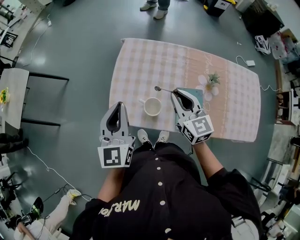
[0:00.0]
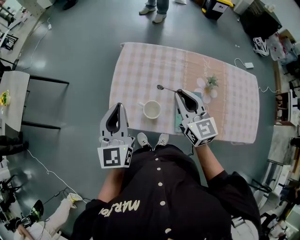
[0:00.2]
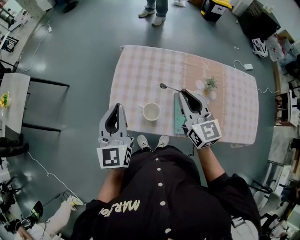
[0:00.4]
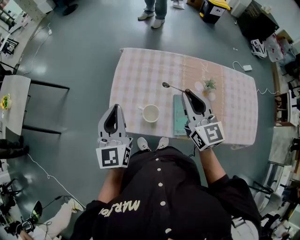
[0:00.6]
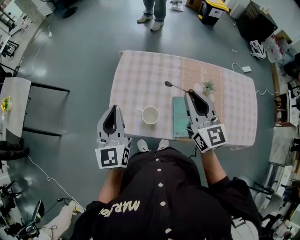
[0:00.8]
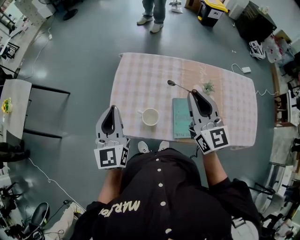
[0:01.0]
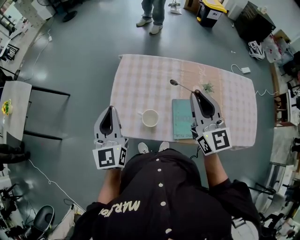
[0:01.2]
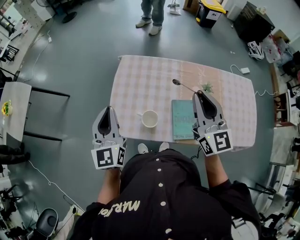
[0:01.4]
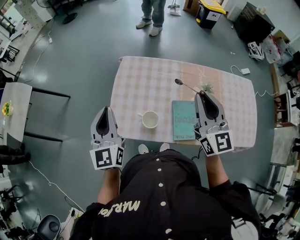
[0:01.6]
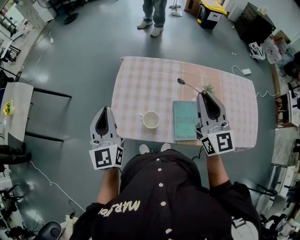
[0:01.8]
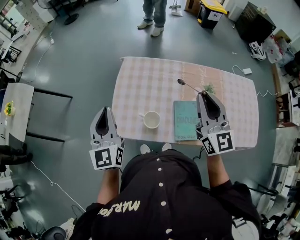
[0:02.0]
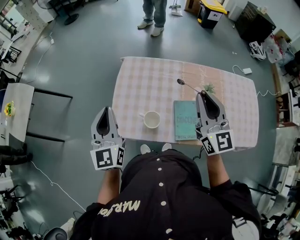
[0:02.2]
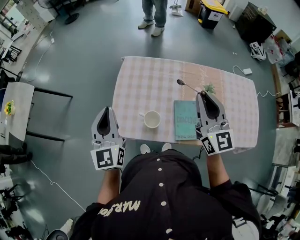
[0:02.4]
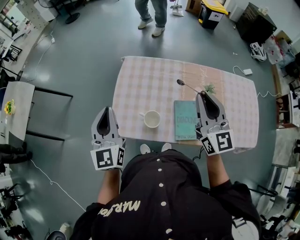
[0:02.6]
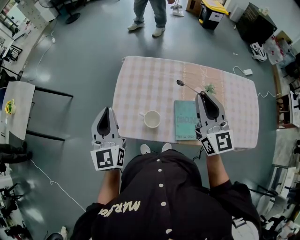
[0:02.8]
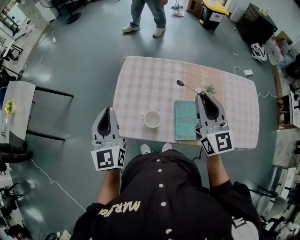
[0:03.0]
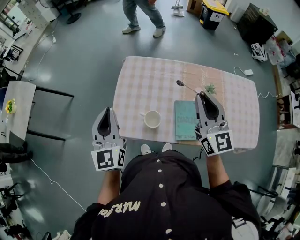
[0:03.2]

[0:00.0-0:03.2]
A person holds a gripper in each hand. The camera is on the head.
0:00.0 to 0:01.6: The left gripper ends up some 5 cm from where it was. The right gripper moves upward and to the right, some 15 cm, and changes its angle by about 20 degrees.
0:01.6 to 0:03.2: The two grippers keep their place.

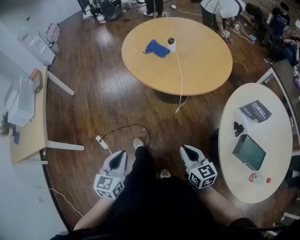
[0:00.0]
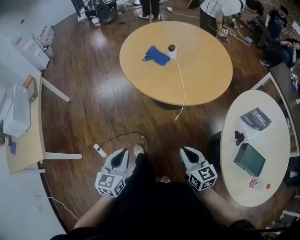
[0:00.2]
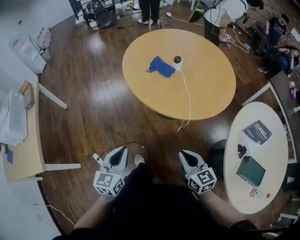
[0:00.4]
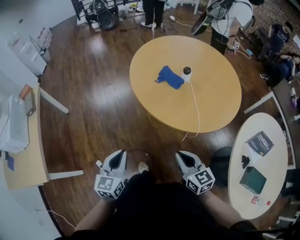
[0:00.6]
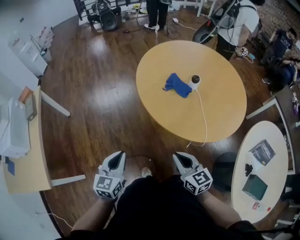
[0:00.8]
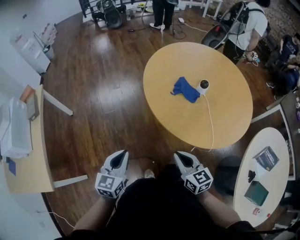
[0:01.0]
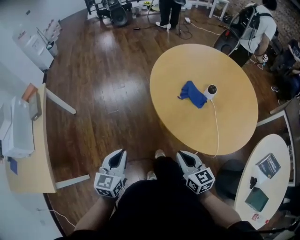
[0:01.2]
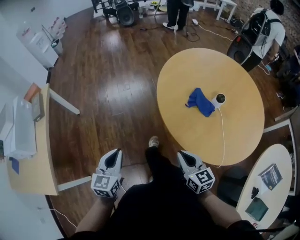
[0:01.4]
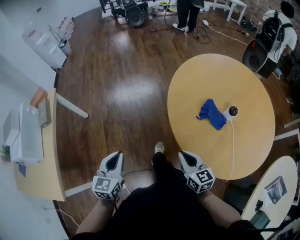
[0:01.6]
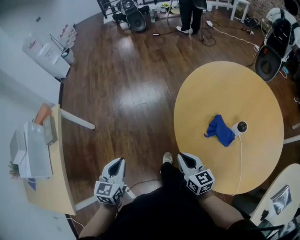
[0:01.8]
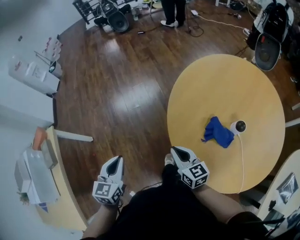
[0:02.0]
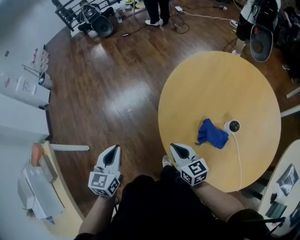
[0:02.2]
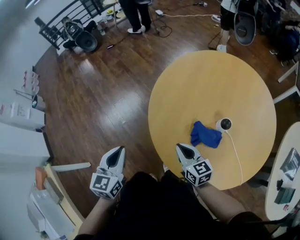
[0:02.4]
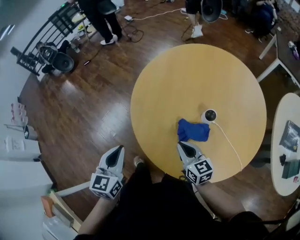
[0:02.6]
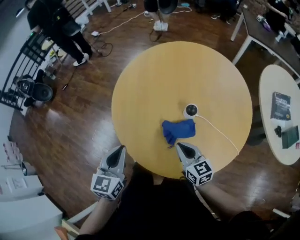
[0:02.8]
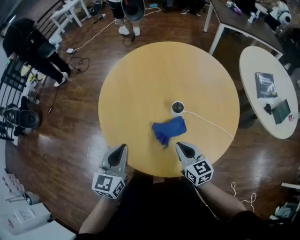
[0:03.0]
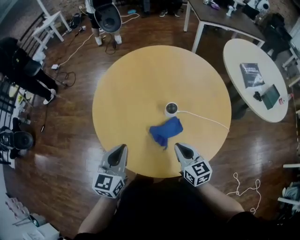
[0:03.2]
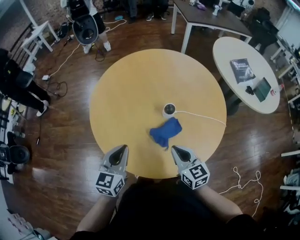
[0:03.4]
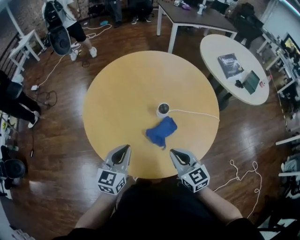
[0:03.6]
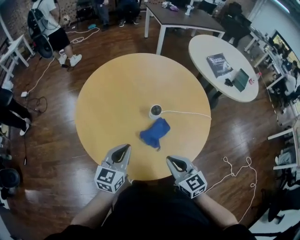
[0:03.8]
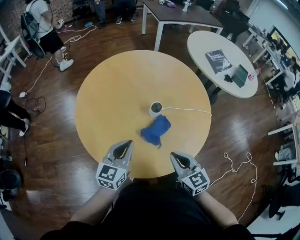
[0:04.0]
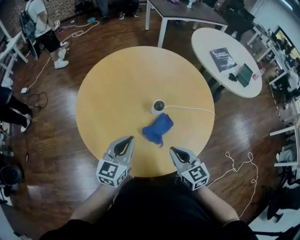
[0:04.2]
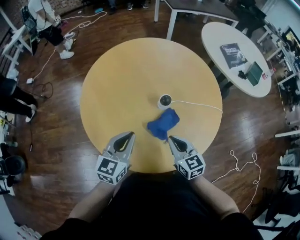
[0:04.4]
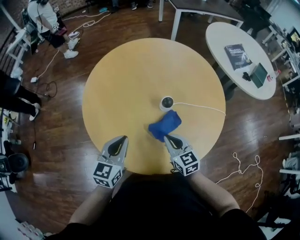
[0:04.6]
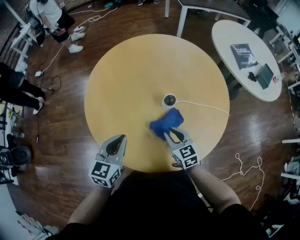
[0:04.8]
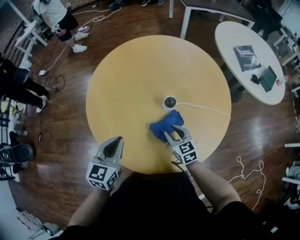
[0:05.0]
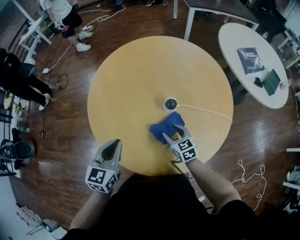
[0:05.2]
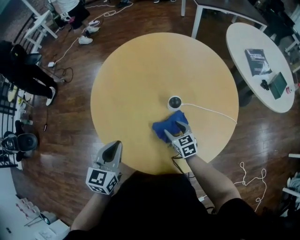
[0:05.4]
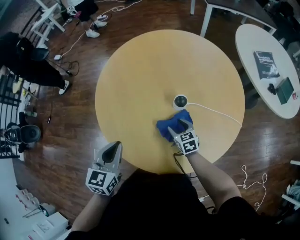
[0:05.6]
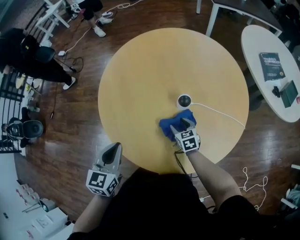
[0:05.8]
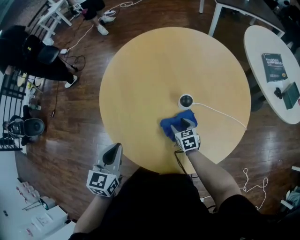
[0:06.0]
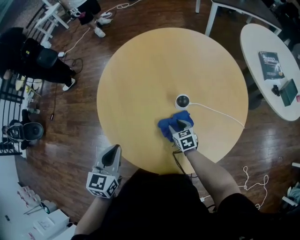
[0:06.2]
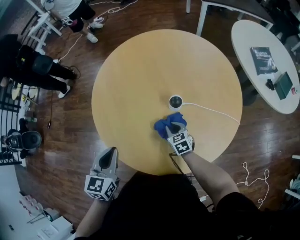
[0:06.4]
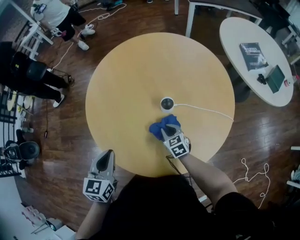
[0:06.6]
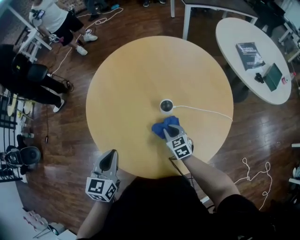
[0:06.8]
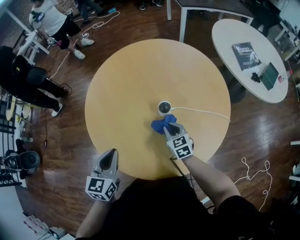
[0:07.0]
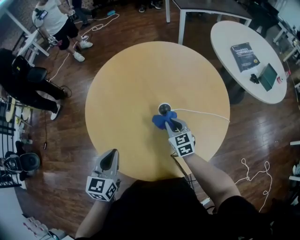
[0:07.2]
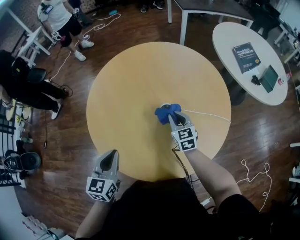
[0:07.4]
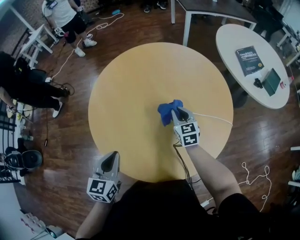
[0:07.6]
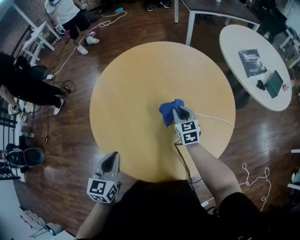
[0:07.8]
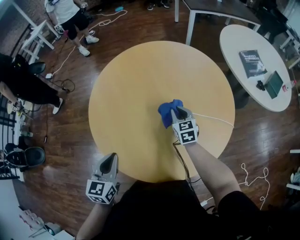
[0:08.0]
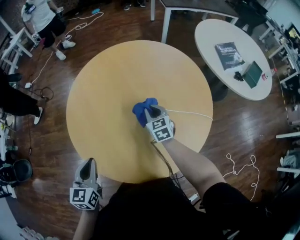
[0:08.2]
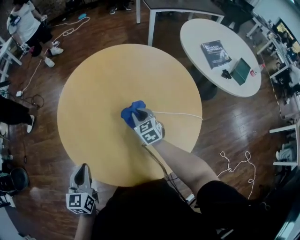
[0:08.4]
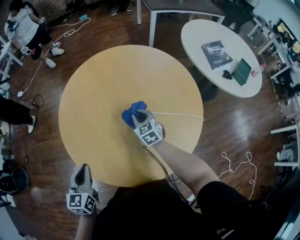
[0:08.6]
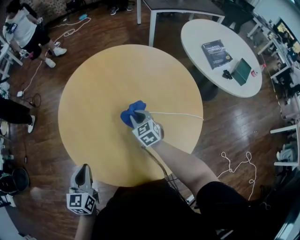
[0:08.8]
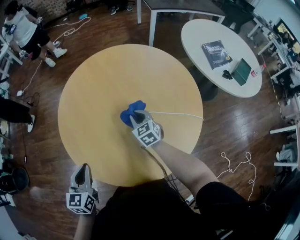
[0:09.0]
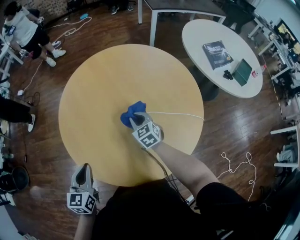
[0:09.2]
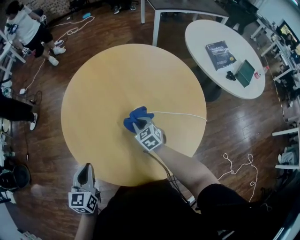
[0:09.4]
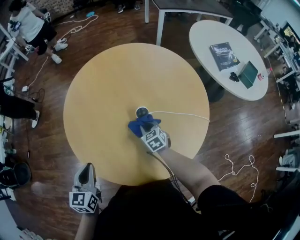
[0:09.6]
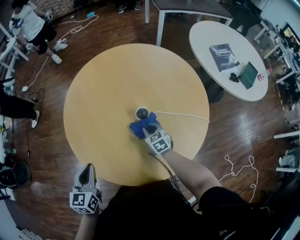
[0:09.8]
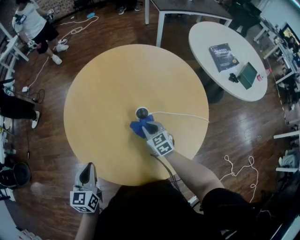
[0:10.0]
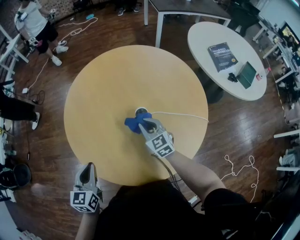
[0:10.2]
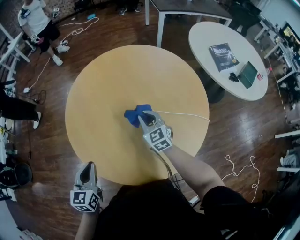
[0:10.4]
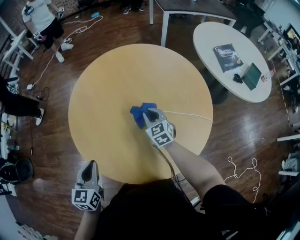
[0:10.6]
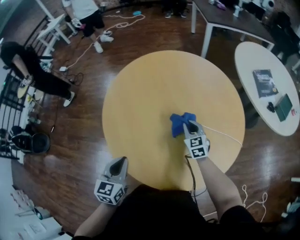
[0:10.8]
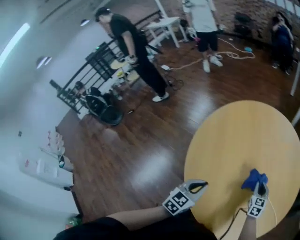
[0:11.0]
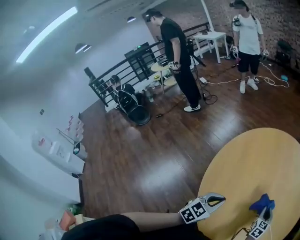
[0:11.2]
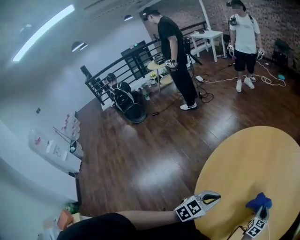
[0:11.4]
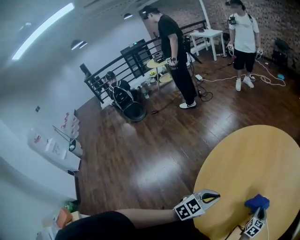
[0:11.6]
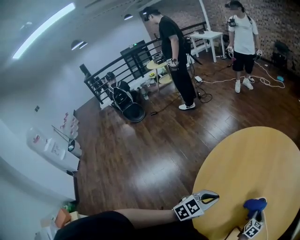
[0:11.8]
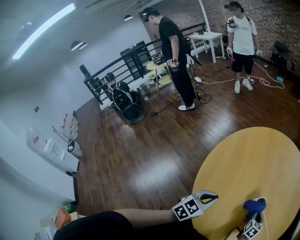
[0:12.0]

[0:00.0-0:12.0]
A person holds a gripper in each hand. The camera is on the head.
0:00.0 to 0:01.6: The pair of grippers is taken forward and to the left, some 50 cm.
0:01.6 to 0:03.0: The right gripper changes place by some 20 cm, and turns by approximately 60 degrees; the left gripper ends up roughly 40 cm from where it was, and turns by roughly 70 degrees.
0:03.0 to 0:04.4: The left gripper shifts by some 10 cm, and swivels approximately 30 degrees. Meanwhile the right gripper rotates approximately 20 degrees.
0:04.4 to 0:06.0: The right gripper shifts about 20 cm downward and forward, rotates about 30 degrees, and opens its fingers. The left gripper shifts approximately 10 cm to the left and backward, and rotates some 30 degrees.
0:06.0 to 0:07.6: The right gripper travels upward, forward and to the right by approximately 20 cm, rotates about 30 degrees, and closes.
0:07.6 to 0:09.0: The right gripper heads to the left, covering about 5 cm.
0:10.4 to 0:12.0: The left gripper is displaced to the right by approximately 10 cm. Meanwhile the right gripper goes roughly 15 cm to the right and downward, and changes its angle by approximately 30 degrees.

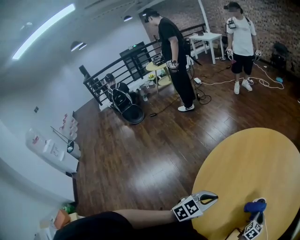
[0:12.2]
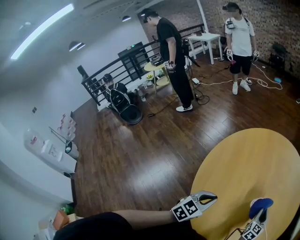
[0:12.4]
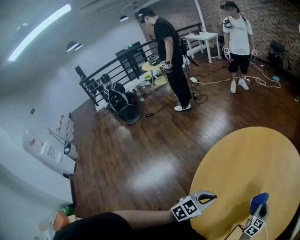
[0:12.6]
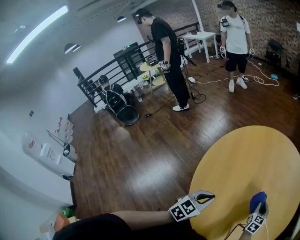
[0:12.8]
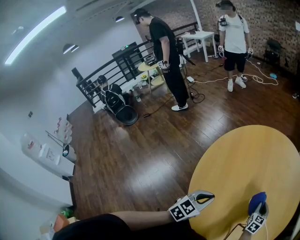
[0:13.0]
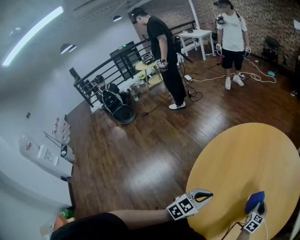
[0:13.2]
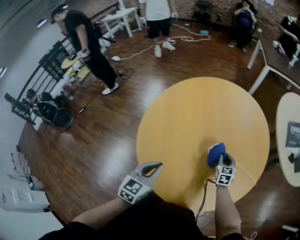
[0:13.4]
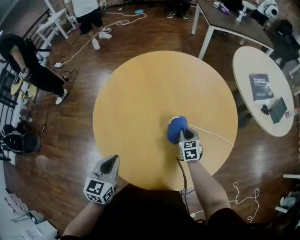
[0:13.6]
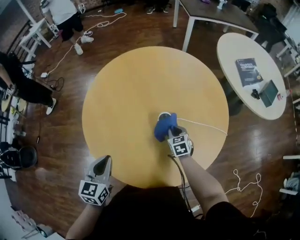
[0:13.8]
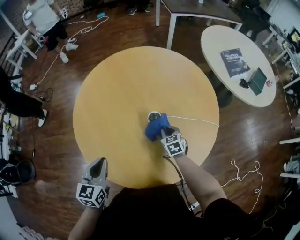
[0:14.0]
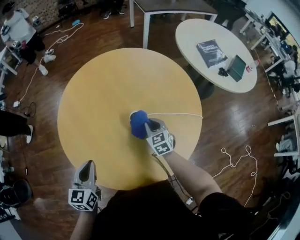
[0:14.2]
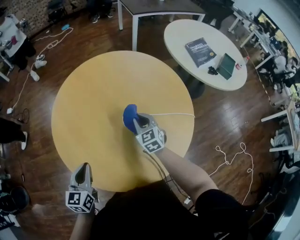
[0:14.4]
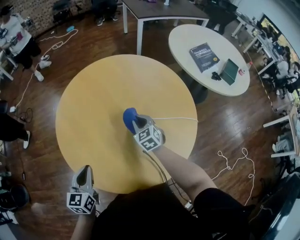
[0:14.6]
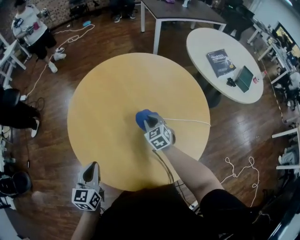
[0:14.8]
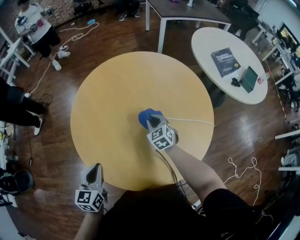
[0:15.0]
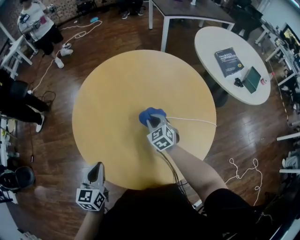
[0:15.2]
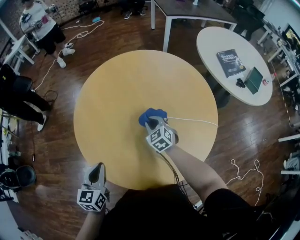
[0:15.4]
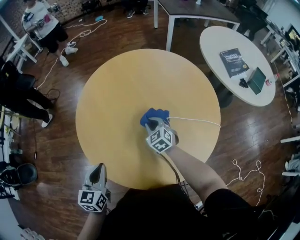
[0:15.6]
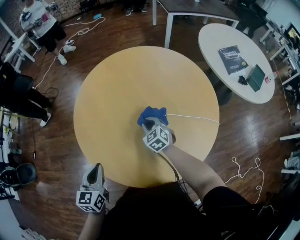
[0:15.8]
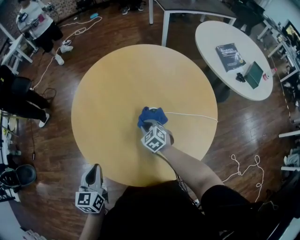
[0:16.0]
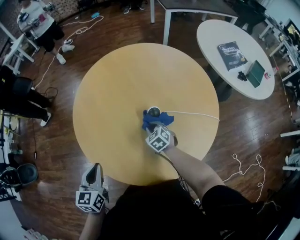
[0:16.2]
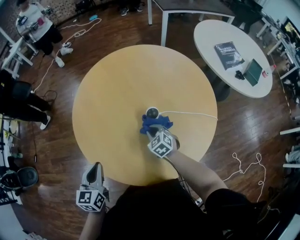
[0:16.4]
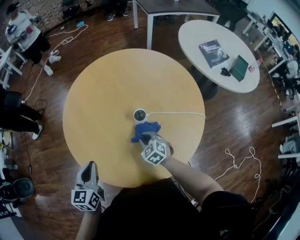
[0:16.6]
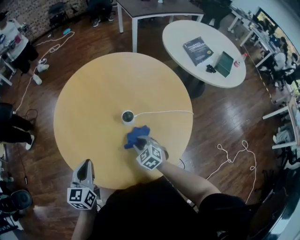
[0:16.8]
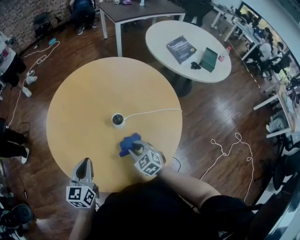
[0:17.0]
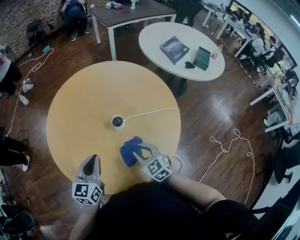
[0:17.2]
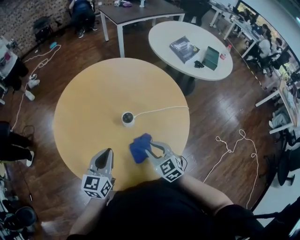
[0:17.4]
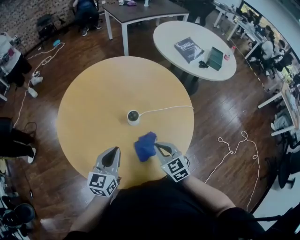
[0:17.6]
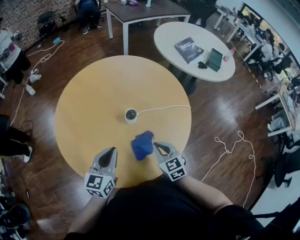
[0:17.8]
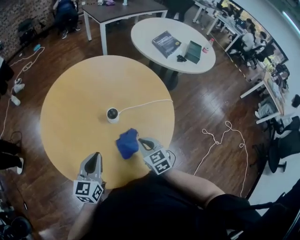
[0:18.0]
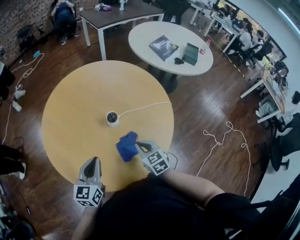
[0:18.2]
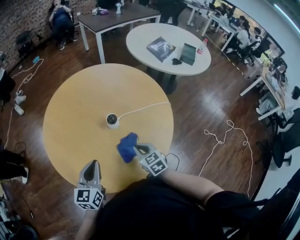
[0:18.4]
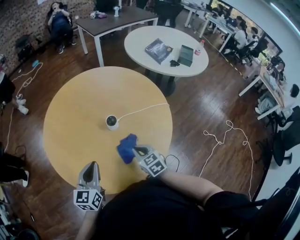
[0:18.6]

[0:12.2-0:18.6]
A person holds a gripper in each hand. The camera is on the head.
0:12.2 to 0:13.8: The right gripper moves to the left and downward, roughly 15 cm. The left gripper heads to the left, covering about 10 cm.
0:13.8 to 0:15.4: The right gripper goes approximately 10 cm to the left and upward.
0:15.4 to 0:17.0: The left gripper travels to the right by some 5 cm. The right gripper heads backward, covering approximately 15 cm.
0:17.0 to 0:18.6: The right gripper turns by some 20 degrees, and closes.

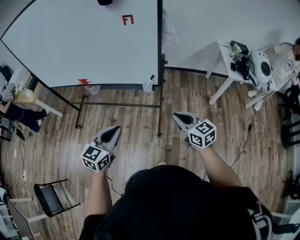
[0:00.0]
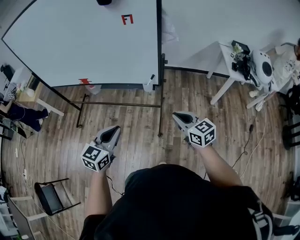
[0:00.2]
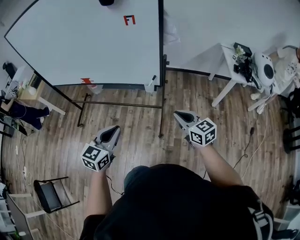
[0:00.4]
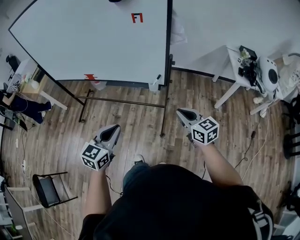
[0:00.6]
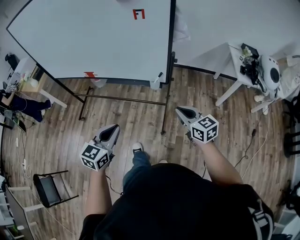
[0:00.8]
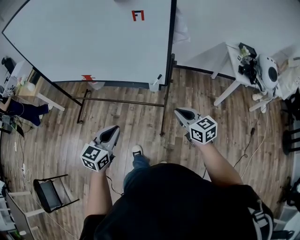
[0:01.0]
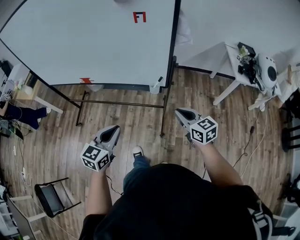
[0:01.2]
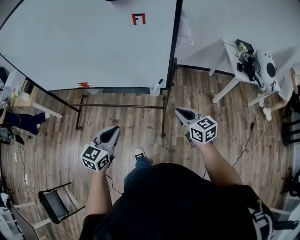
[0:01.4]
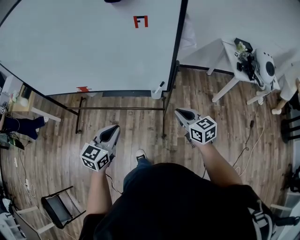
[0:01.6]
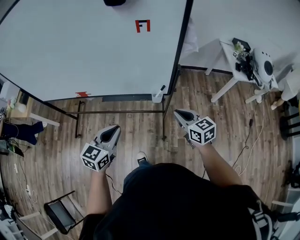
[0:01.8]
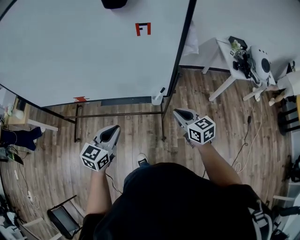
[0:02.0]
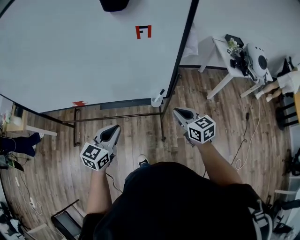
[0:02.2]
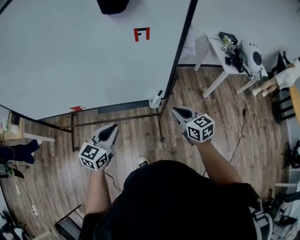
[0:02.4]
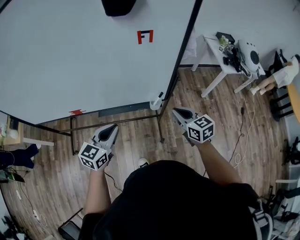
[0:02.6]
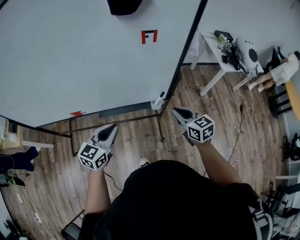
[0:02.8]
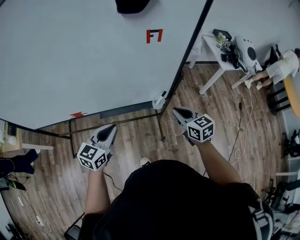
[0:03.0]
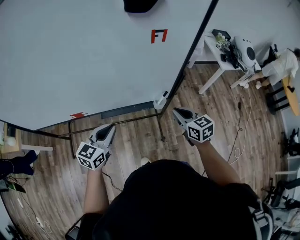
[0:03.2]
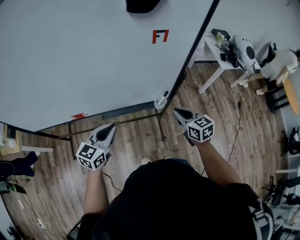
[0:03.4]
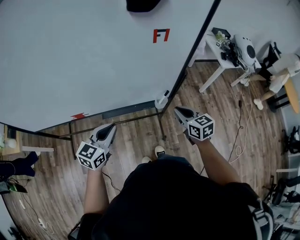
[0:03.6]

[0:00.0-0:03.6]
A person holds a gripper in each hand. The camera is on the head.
0:00.0 to 0:01.8: The two grippers go some 15 cm forward and to the left.
0:01.8 to 0:03.6: The right gripper shifts some 10 cm to the left and forward. The left gripper moves to the left and forward, roughly 15 cm.
